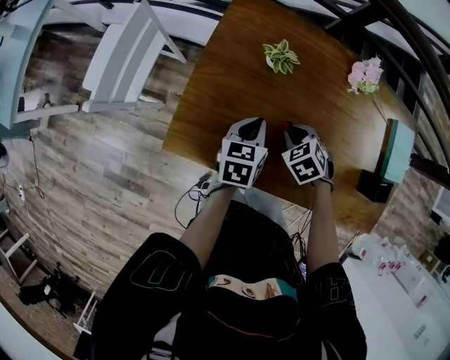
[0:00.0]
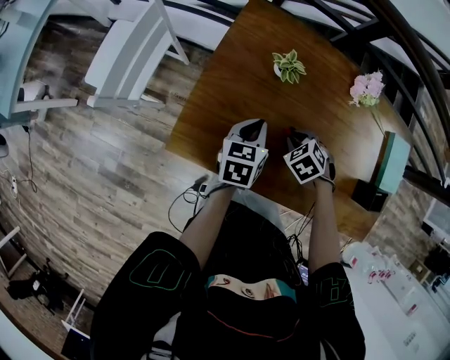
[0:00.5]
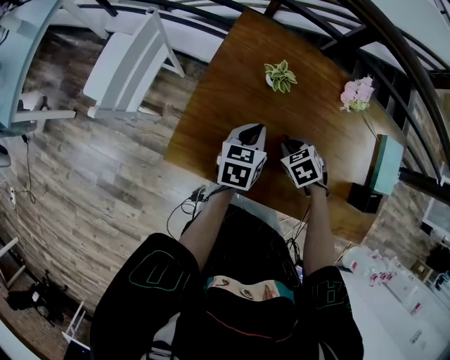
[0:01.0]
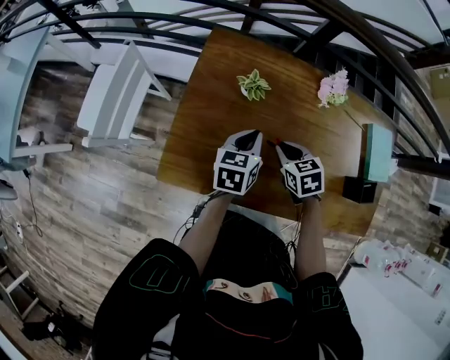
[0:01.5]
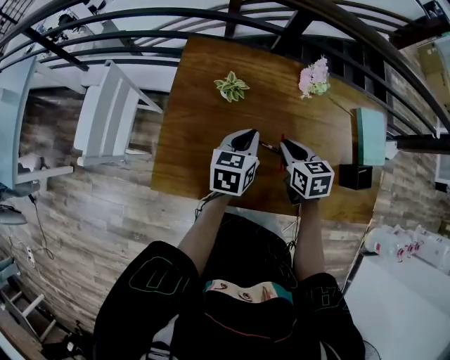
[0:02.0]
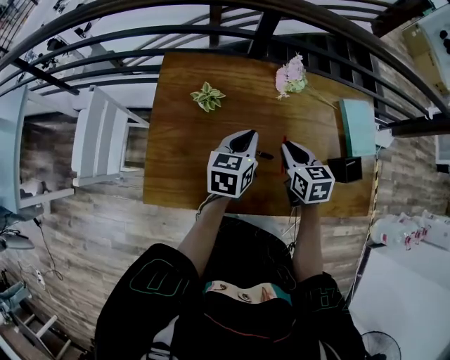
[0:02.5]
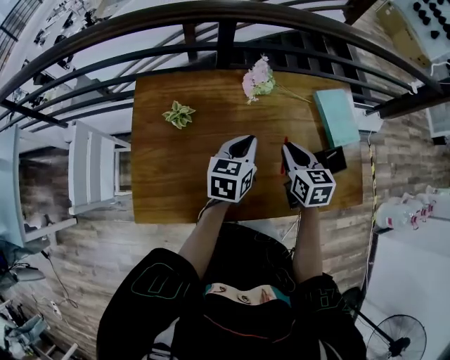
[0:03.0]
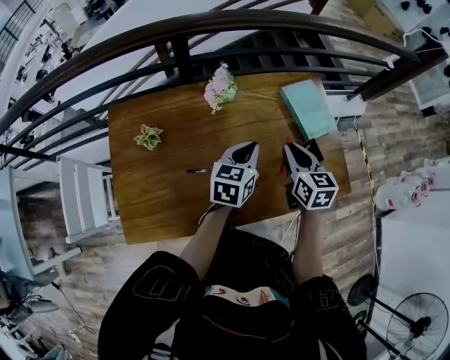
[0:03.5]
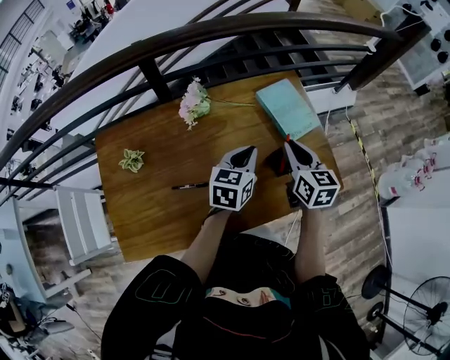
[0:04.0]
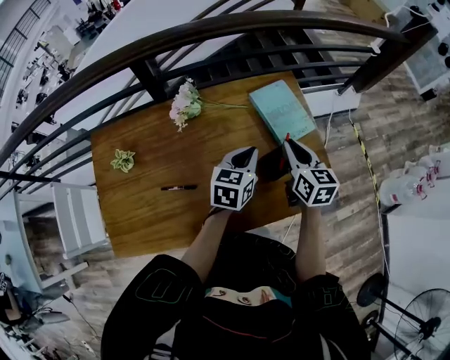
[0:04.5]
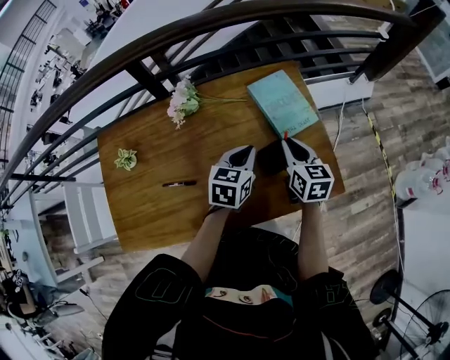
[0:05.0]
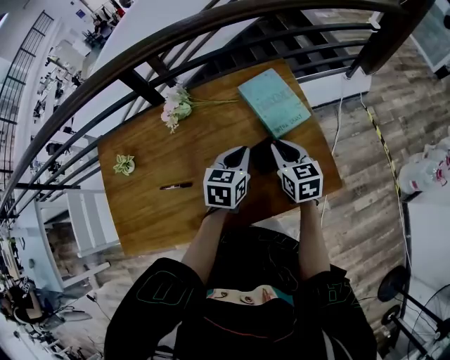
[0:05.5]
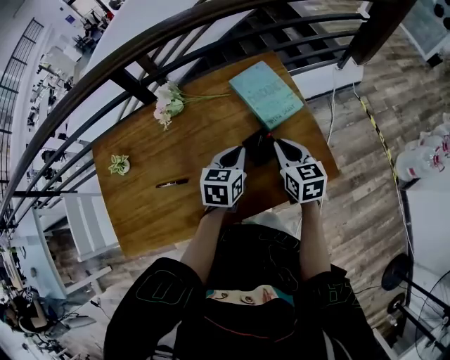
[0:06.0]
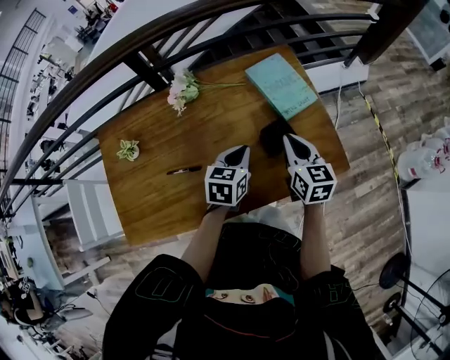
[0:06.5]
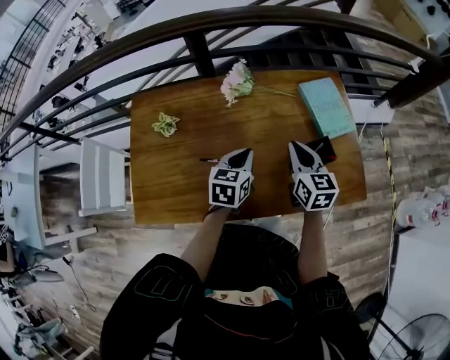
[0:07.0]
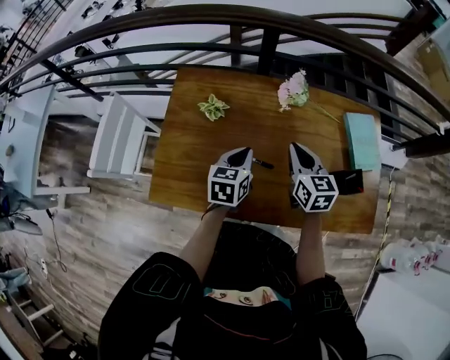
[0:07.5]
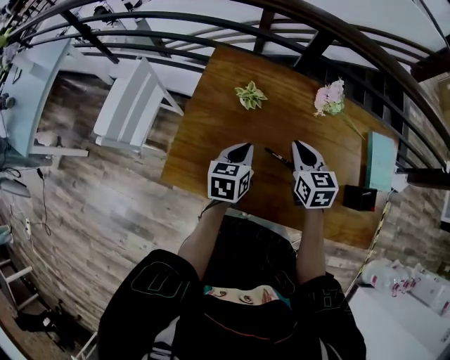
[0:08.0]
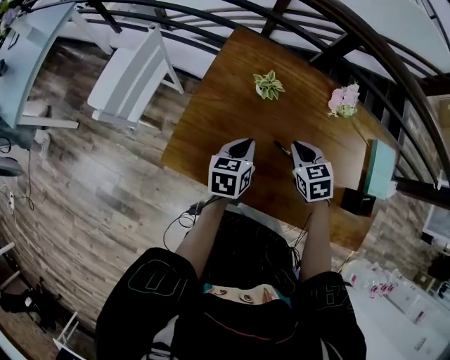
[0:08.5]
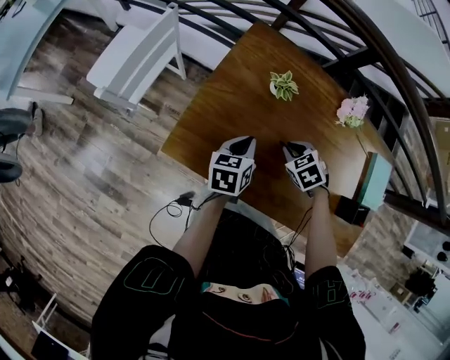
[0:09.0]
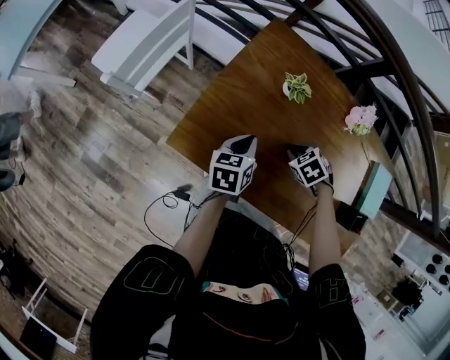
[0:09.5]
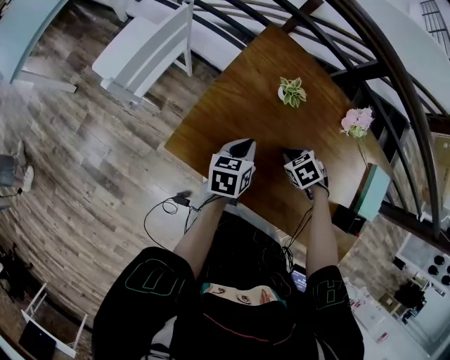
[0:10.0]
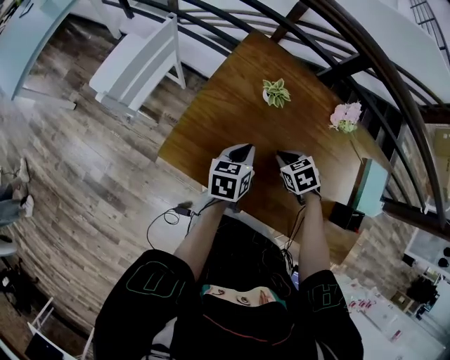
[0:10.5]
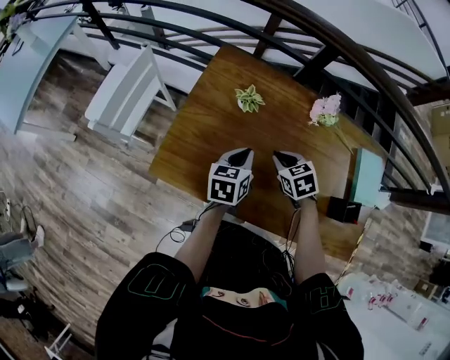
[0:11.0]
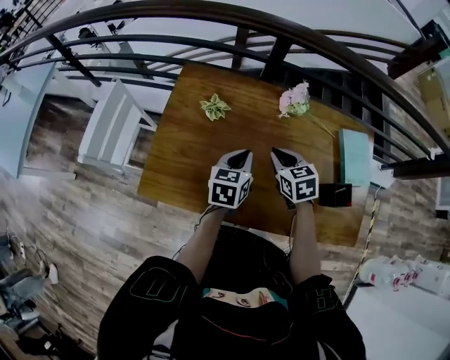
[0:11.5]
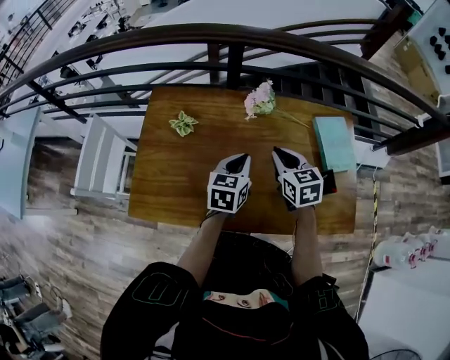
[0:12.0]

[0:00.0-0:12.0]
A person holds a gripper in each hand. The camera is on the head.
0:00.0 to 0:02.0: The left gripper ends up about 10 cm from where it was; the right gripper heads upward, covering some 10 cm, and rotates around the line of its fingers by some 40 degrees, clockwise from behind.
0:02.0 to 0:04.0: The right gripper changes place by about 35 cm, and changes its angle by about 40 degrees; the left gripper changes place by some 35 cm, and changes its angle by about 30 degrees.
0:04.0 to 0:06.0: The grippers both shift to the right and downward by approximately 10 cm.
0:06.0 to 0:08.0: The pair of grippers is taken about 40 cm. The right gripper swivels roughly 30 degrees. Meanwhile the left gripper rotates about 40 degrees.
0:08.0 to 0:10.0: The right gripper moves downward, some 15 cm, and tilts its fingers roughly 50 degrees downward. The left gripper changes place by approximately 10 cm.
0:10.0 to 0:12.0: The right gripper ends up approximately 30 cm from where it was, and tips its fingers upward by about 50 degrees. The left gripper changes place by roughly 30 cm, and changes its angle by roughly 30 degrees.

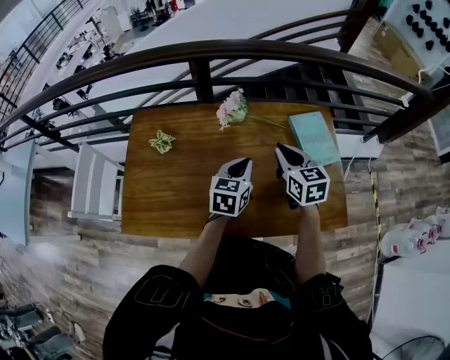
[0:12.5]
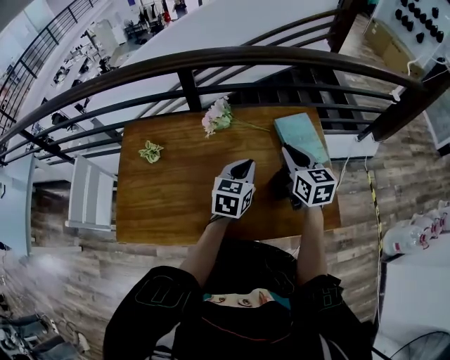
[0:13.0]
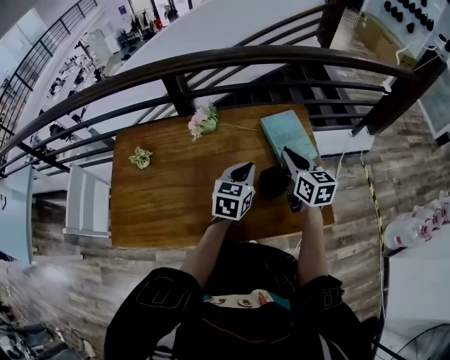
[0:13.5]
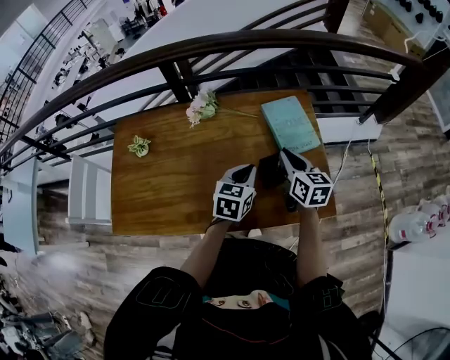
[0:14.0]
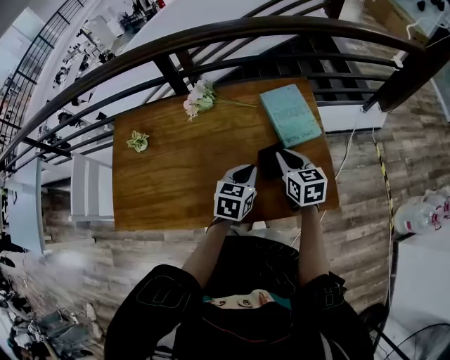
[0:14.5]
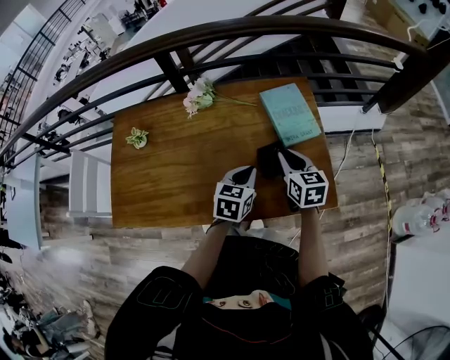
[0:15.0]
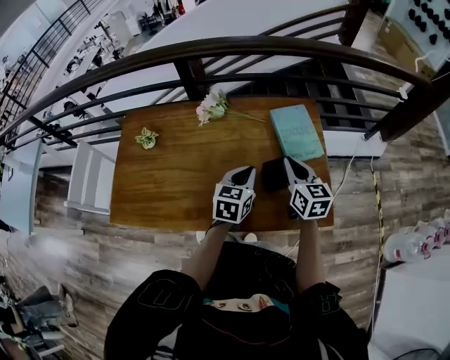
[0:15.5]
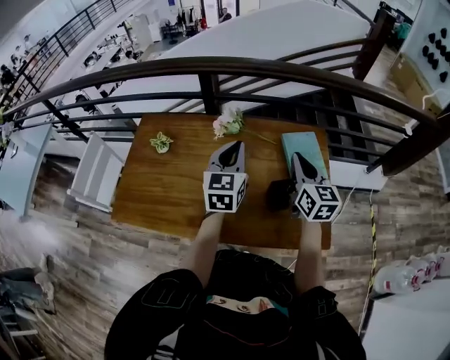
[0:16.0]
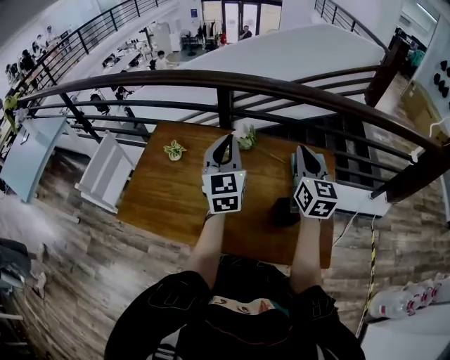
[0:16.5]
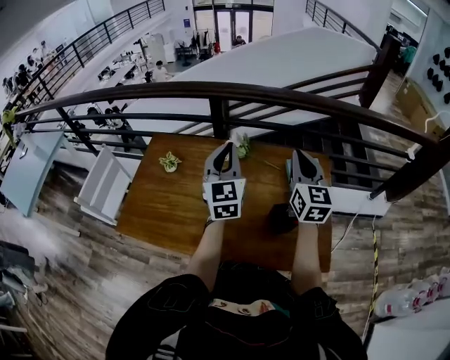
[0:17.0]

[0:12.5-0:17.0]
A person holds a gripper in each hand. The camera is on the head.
0:12.5 to 0:14.5: The right gripper shifts some 15 cm to the right and downward. Meanwhile the left gripper shifts some 15 cm to the right.
0:14.5 to 0:17.0: The right gripper moves upward and forward, some 25 cm, and turns by approximately 30 degrees. The left gripper travels upward, to the left and forward by roughly 30 cm, and points its fingers some 40 degrees further upward.

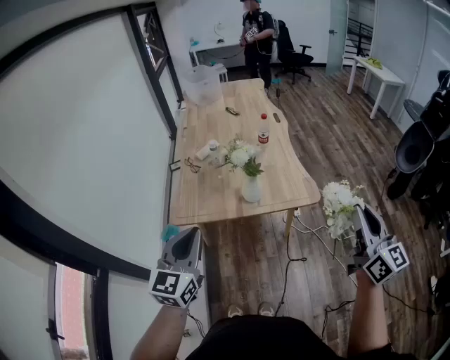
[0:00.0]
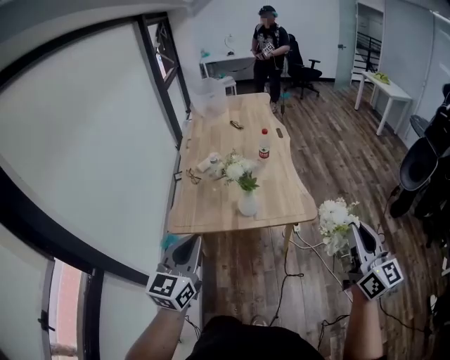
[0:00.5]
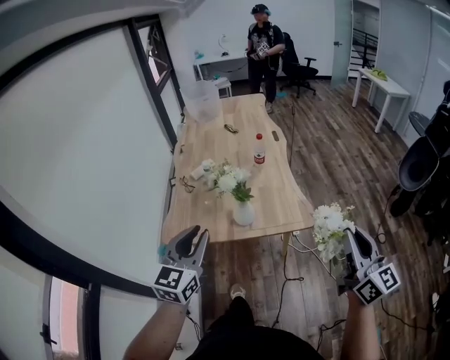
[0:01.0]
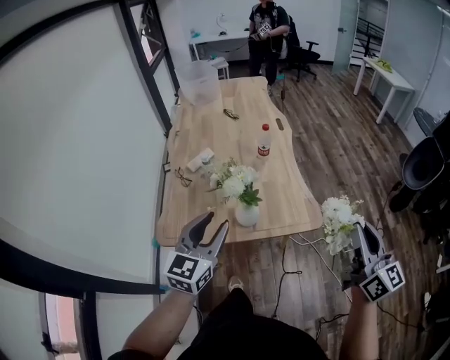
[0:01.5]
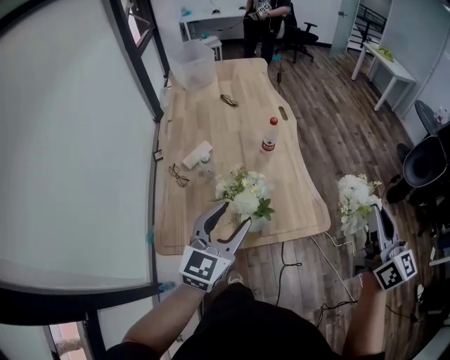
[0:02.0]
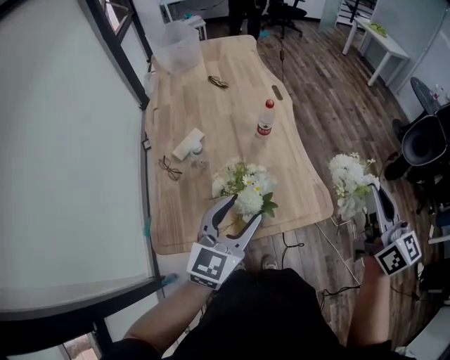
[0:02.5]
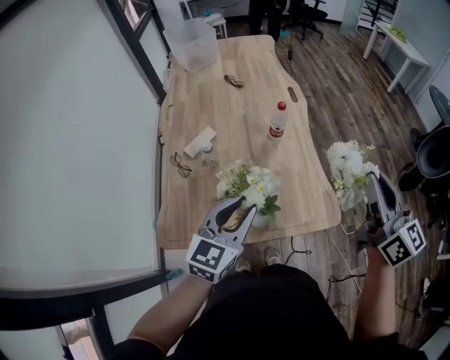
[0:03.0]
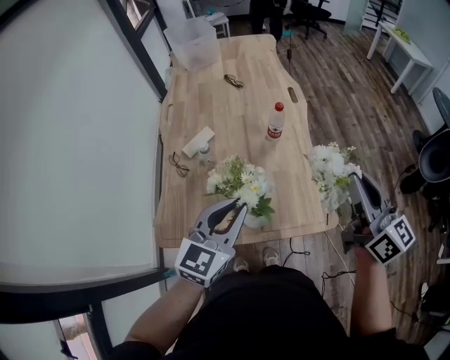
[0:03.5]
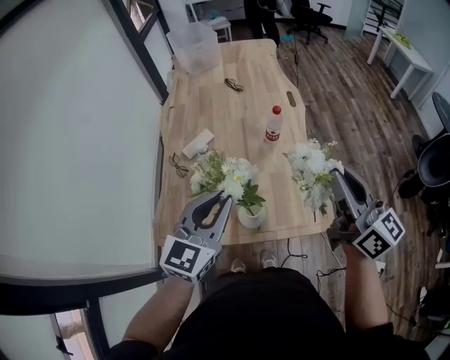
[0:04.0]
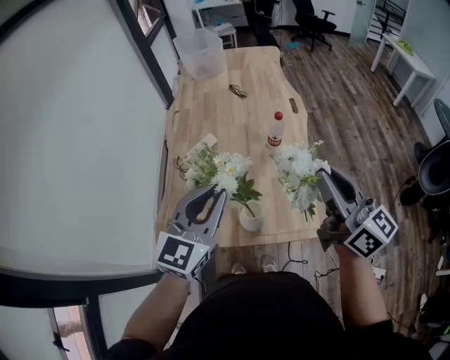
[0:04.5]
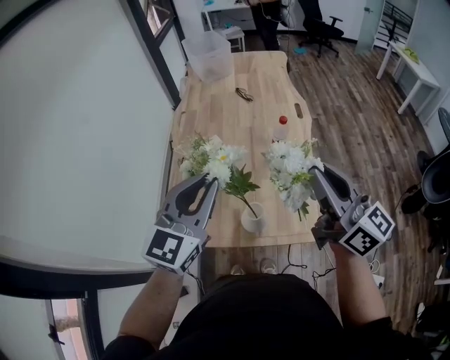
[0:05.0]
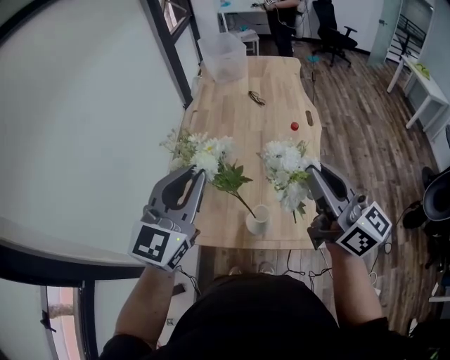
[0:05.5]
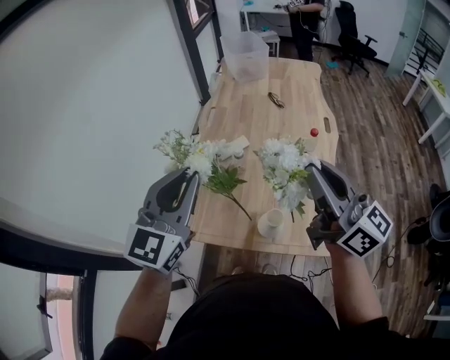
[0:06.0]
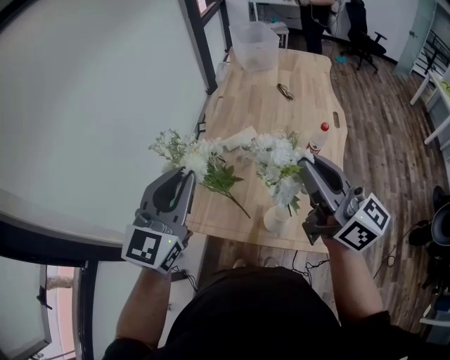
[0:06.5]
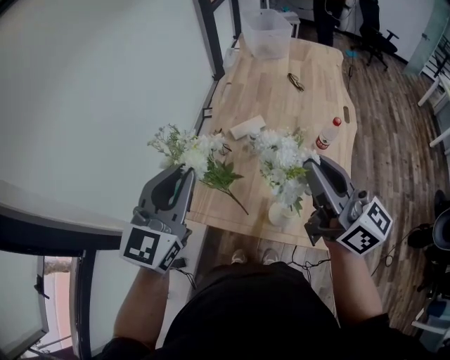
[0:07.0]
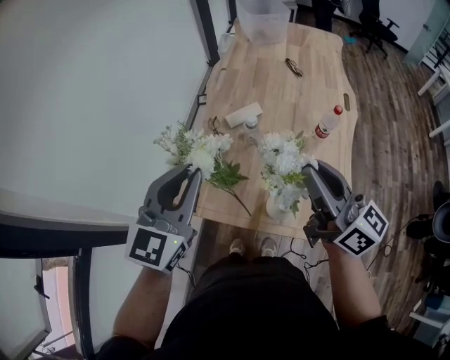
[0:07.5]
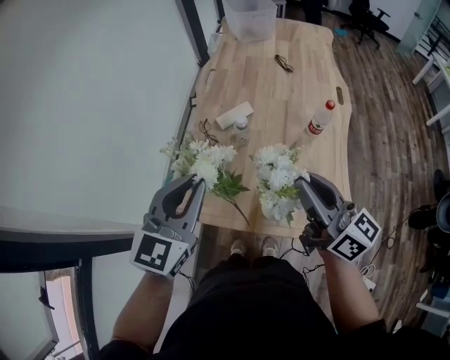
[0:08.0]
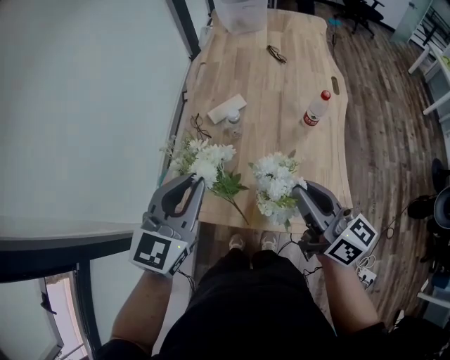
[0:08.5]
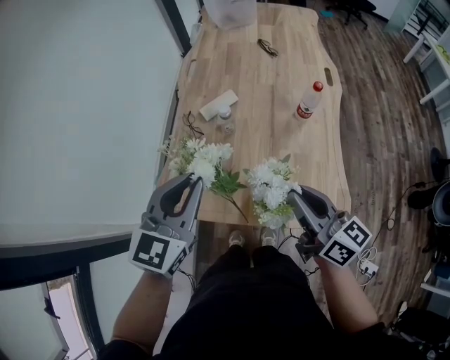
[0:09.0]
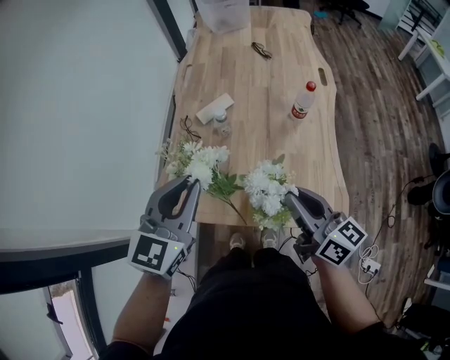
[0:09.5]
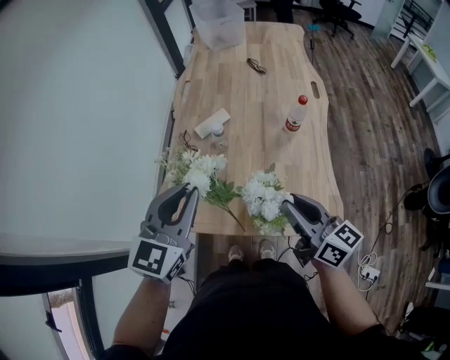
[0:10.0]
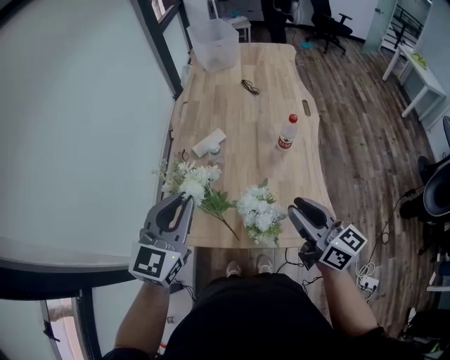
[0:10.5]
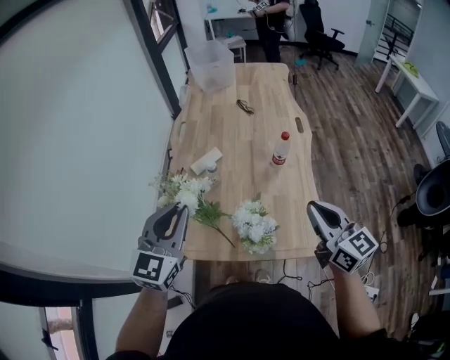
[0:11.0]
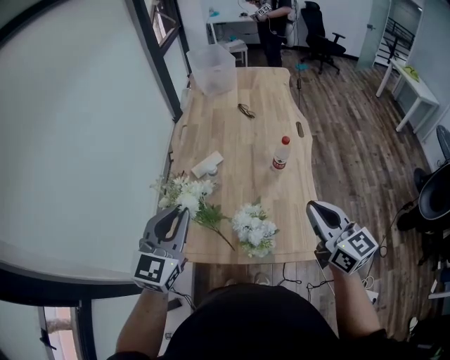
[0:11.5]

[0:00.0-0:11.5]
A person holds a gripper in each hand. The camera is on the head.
0:00.0 to 0:02.0: The grippers both shift forward by approximately 25 cm. The left gripper opens up.
0:02.0 to 0:04.0: The right gripper shifts approximately 15 cm forward and to the left, and turns by about 20 degrees; the left gripper shifts by approximately 5 cm, and closes up.
0:04.0 to 0:06.0: The grippers both shift to the left and upward by roughly 15 cm. The left gripper swivels approximately 20 degrees, while the right gripper rotates approximately 20 degrees.
0:06.0 to 0:07.5: The grippers both shift downward by roughly 10 cm.
0:07.5 to 0:09.5: The right gripper shifts about 15 cm downward; the left gripper heads to the right and downward, covering some 10 cm.
0:09.5 to 0:11.5: The right gripper travels to the right and upward by approximately 15 cm, and rotates about 30 degrees.
